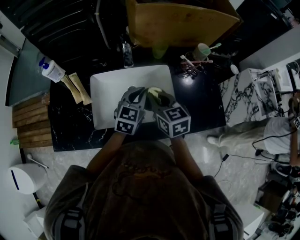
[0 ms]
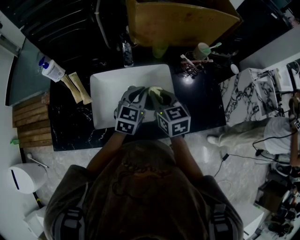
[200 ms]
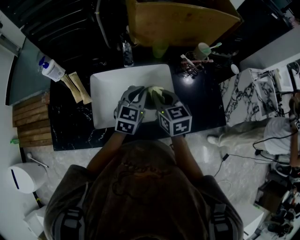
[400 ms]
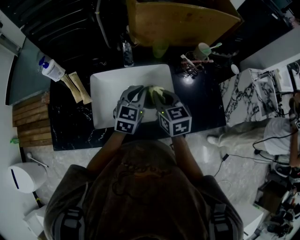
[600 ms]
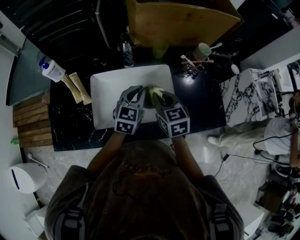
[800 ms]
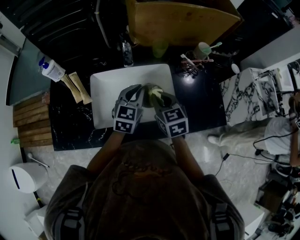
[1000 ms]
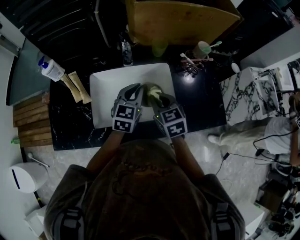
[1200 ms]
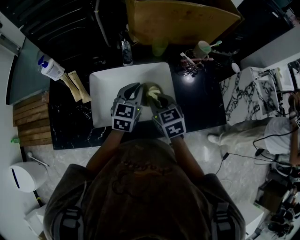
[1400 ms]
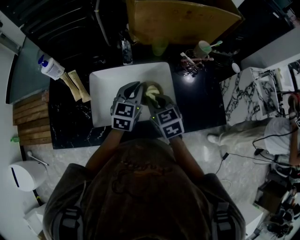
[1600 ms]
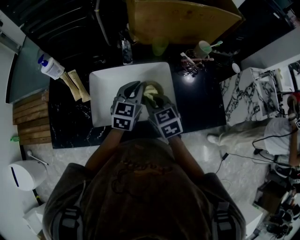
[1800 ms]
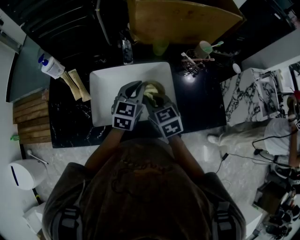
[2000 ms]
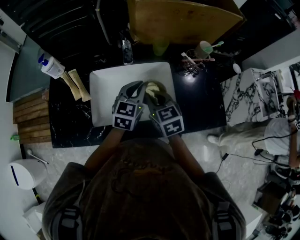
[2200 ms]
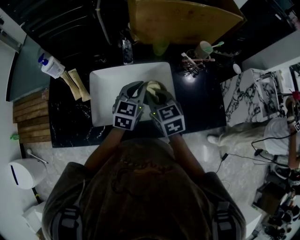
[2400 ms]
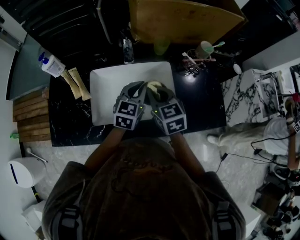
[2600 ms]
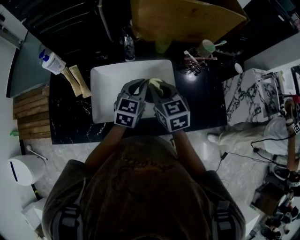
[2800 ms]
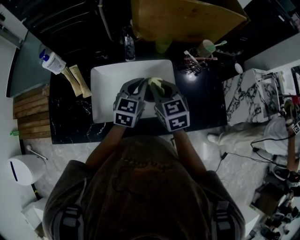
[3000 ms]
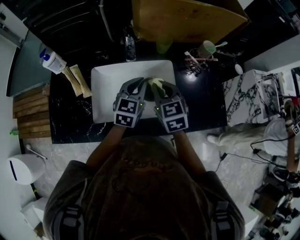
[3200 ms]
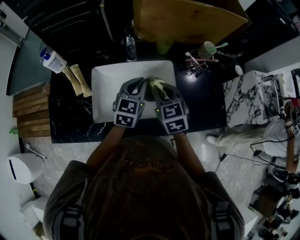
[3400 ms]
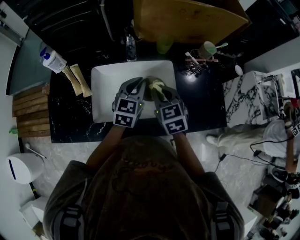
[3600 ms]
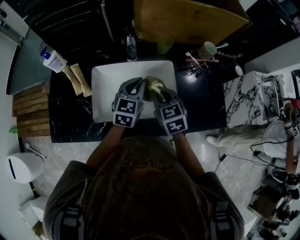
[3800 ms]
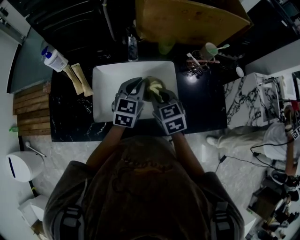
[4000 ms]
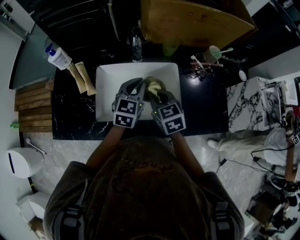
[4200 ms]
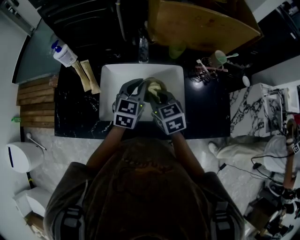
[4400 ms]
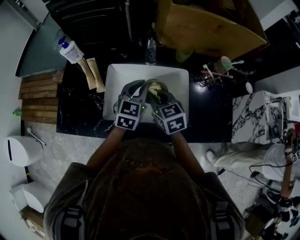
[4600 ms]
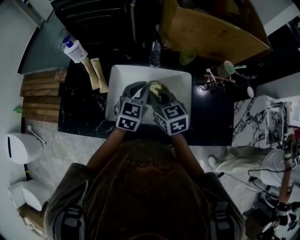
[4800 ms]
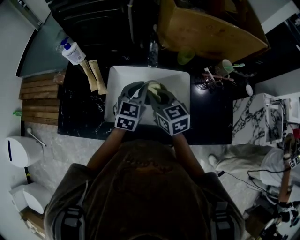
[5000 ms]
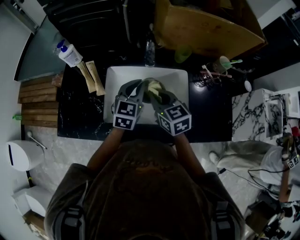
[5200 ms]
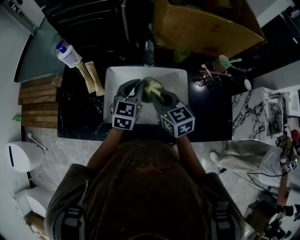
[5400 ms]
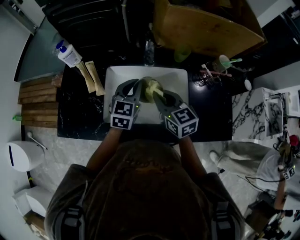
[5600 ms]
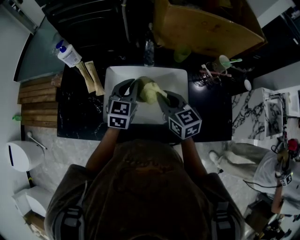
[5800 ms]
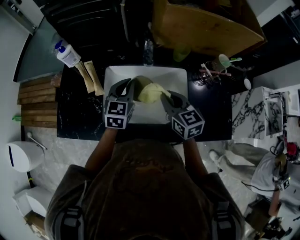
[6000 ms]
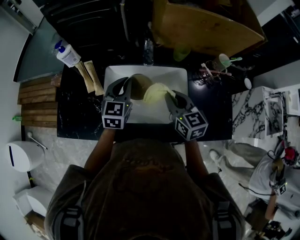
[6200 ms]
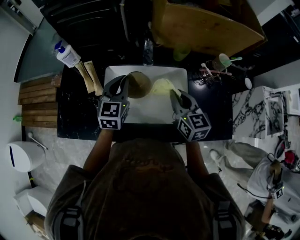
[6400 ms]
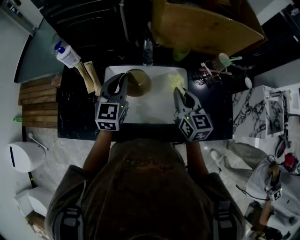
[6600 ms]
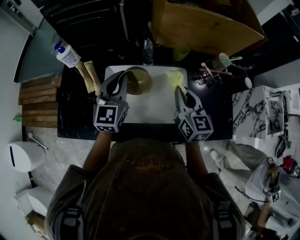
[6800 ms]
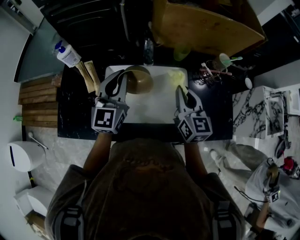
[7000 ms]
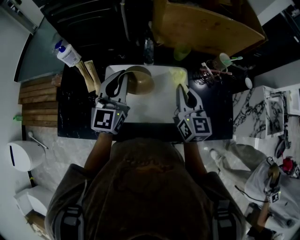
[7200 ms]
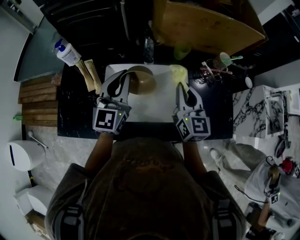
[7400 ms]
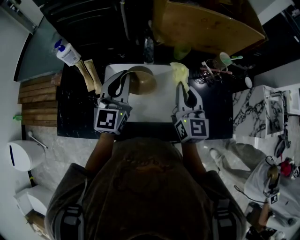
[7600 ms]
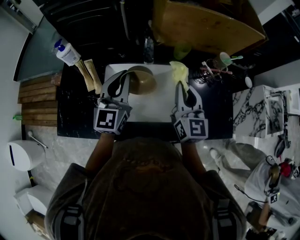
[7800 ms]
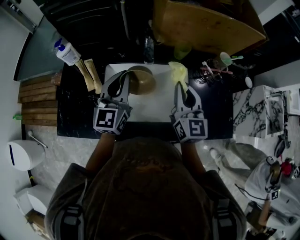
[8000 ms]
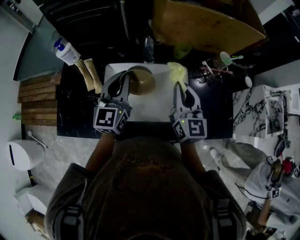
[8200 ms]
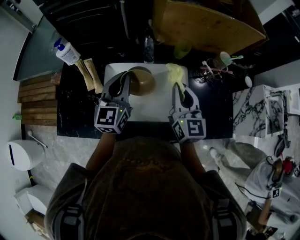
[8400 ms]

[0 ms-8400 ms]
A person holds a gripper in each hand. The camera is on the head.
0 ms to 4200 ms: The grippers move only a little.
4200 ms to 5600 ms: The left gripper shifts some 5 cm to the left.
5600 ms to 7000 ms: The left gripper is displaced upward by some 10 cm, and rotates some 20 degrees; the right gripper travels to the right by about 10 cm, and changes its angle by about 20 degrees.
7000 ms to 8400 ms: The grippers make only small movements.

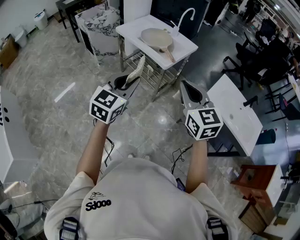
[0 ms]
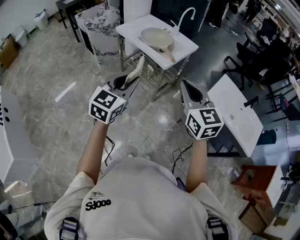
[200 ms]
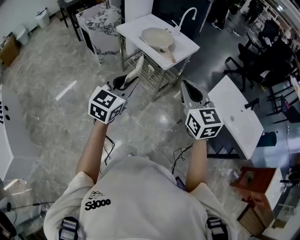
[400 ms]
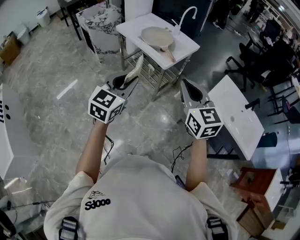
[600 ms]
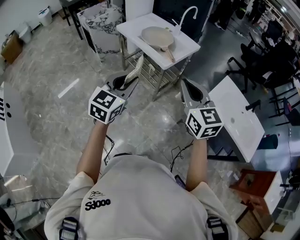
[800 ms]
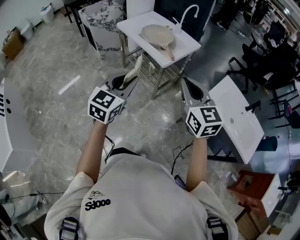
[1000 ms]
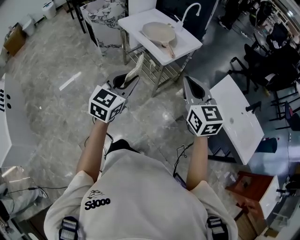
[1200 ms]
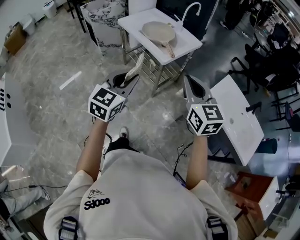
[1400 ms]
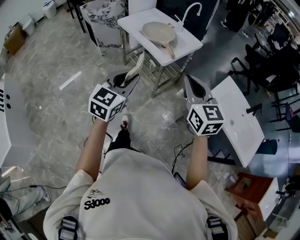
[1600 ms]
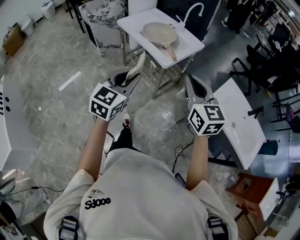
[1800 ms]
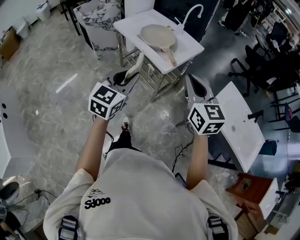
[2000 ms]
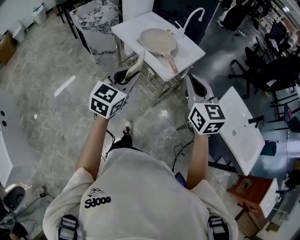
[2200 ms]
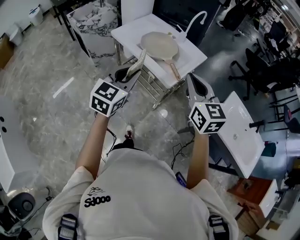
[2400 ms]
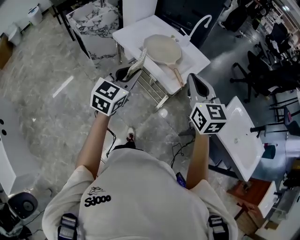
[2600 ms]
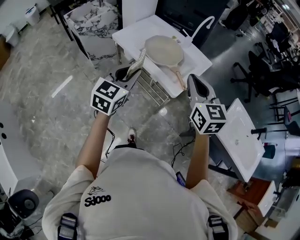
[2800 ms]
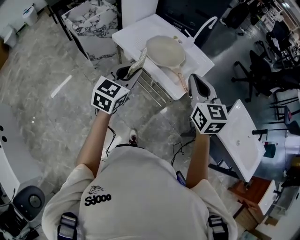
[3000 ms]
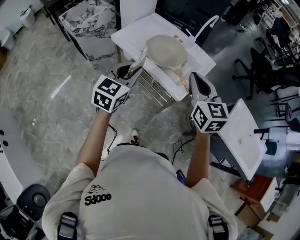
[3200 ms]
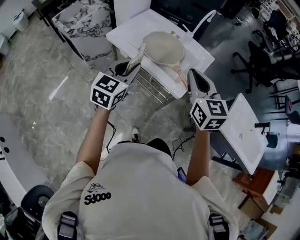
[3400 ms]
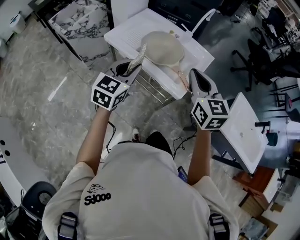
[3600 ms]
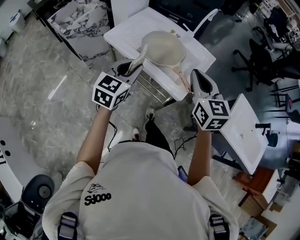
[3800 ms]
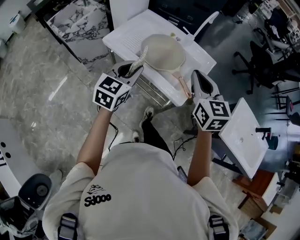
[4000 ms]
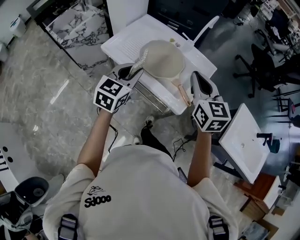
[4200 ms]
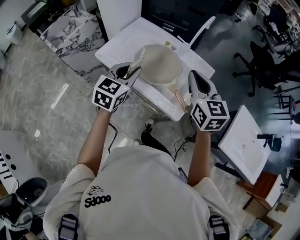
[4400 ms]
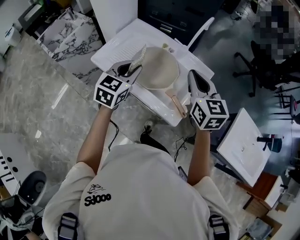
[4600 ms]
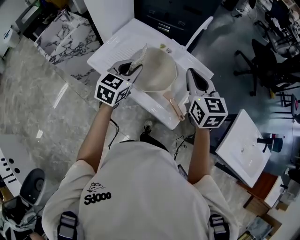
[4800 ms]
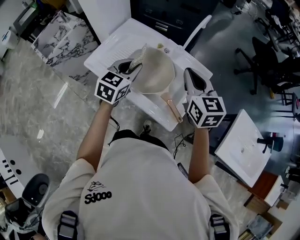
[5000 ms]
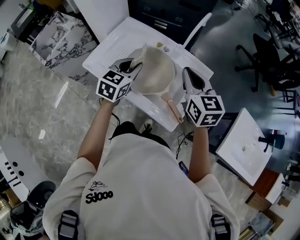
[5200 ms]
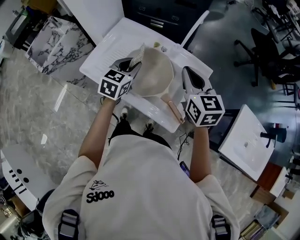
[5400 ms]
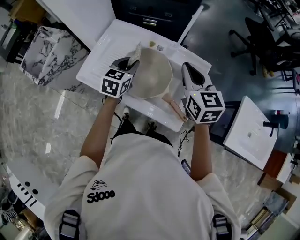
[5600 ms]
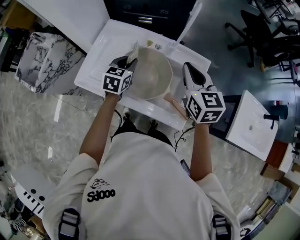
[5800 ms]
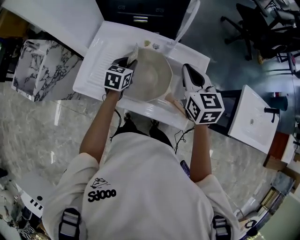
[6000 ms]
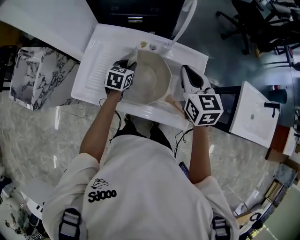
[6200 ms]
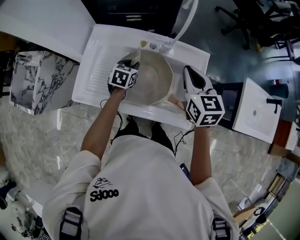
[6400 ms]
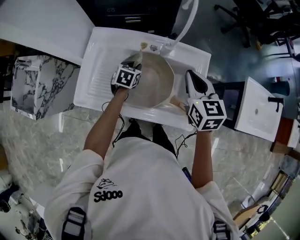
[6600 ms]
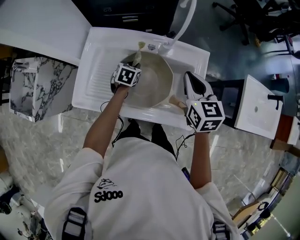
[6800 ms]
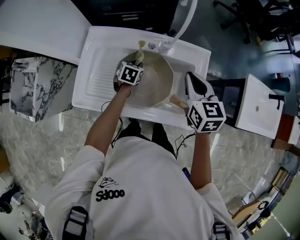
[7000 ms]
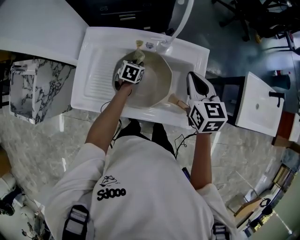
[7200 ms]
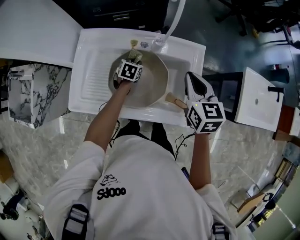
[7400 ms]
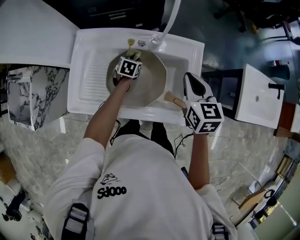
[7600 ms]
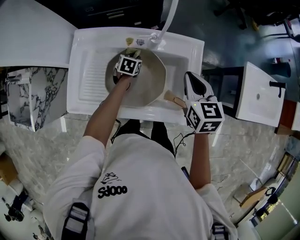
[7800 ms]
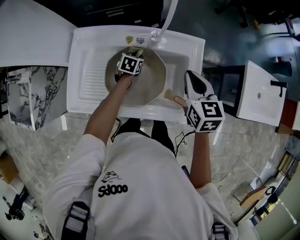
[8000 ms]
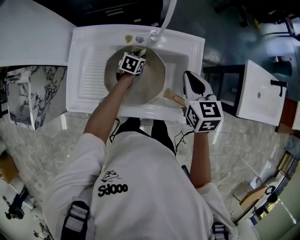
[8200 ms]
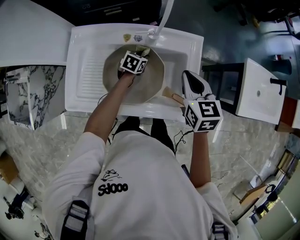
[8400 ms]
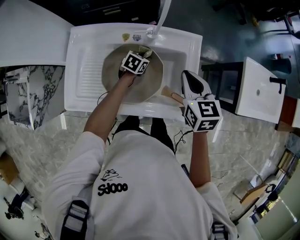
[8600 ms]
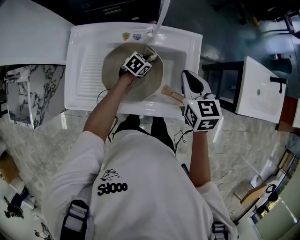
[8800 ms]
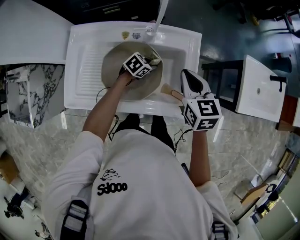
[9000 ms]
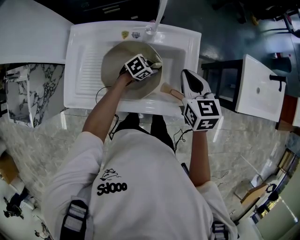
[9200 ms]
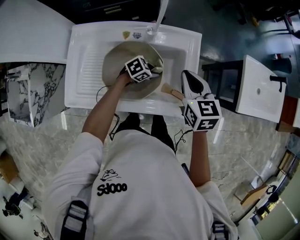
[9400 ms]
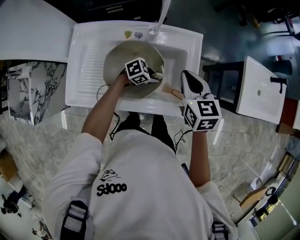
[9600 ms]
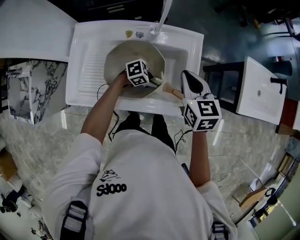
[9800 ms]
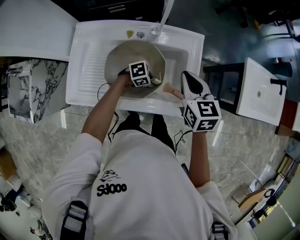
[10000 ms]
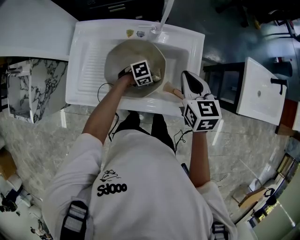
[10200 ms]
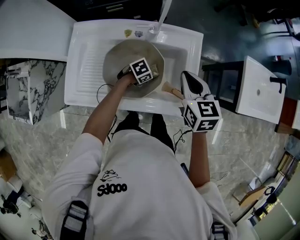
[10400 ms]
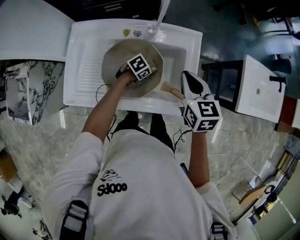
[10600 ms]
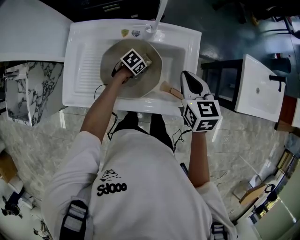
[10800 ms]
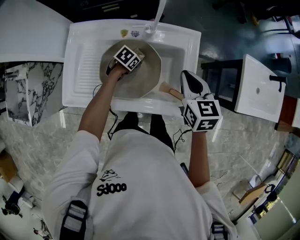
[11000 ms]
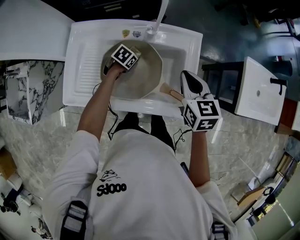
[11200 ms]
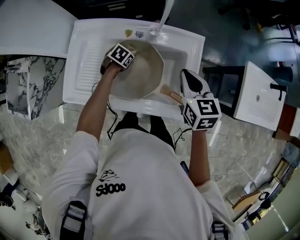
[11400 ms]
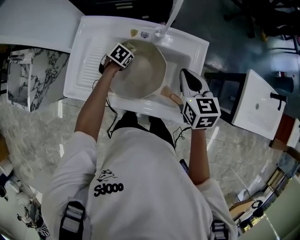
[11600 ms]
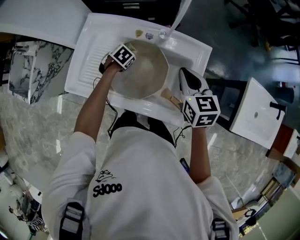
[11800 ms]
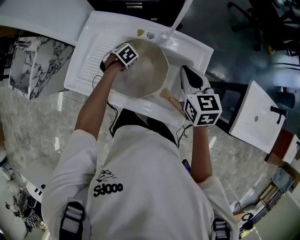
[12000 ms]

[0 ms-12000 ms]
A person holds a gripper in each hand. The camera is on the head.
0 ms to 1600 ms: The left gripper moves to the right, roughly 5 cm. The right gripper is displaced to the right and forward by some 10 cm.
1600 ms to 3000 ms: The grippers both shift forward and to the left by approximately 30 cm.
3000 ms to 4400 ms: Both grippers move forward, roughly 15 cm.
4400 ms to 6000 ms: The left gripper goes about 25 cm forward and downward, and swivels roughly 20 degrees. The right gripper is displaced forward and downward by approximately 15 cm.
6000 ms to 7600 ms: The left gripper travels downward and forward by some 15 cm, and changes its angle by approximately 20 degrees; the right gripper goes roughly 5 cm downward.
7600 ms to 9000 ms: The left gripper moves to the right, some 15 cm, and swivels some 40 degrees.
9000 ms to 10400 ms: The left gripper ends up some 10 cm from where it was, and turns by some 20 degrees.
10400 ms to 12000 ms: The right gripper ends up about 5 cm from where it was; the left gripper changes place by roughly 20 cm, and changes its angle by approximately 40 degrees.

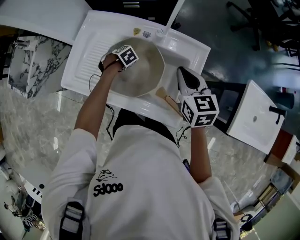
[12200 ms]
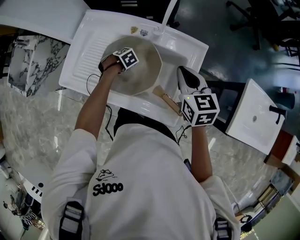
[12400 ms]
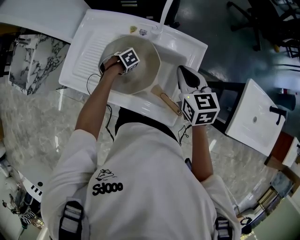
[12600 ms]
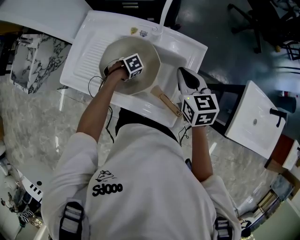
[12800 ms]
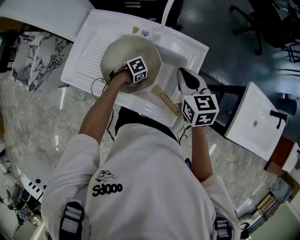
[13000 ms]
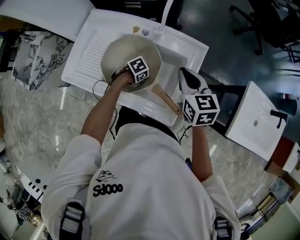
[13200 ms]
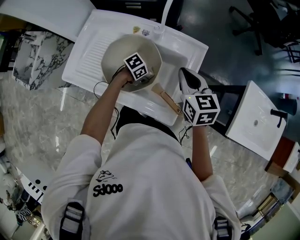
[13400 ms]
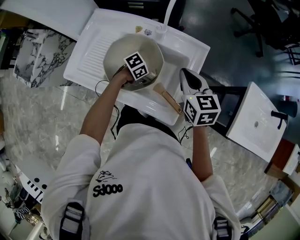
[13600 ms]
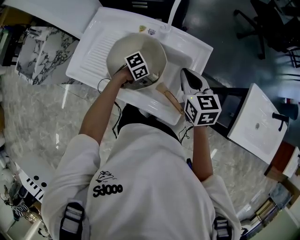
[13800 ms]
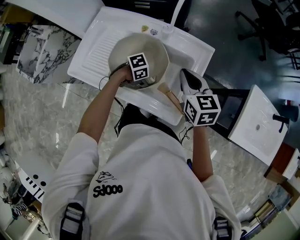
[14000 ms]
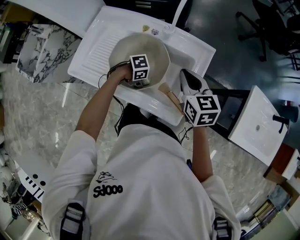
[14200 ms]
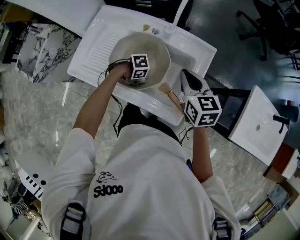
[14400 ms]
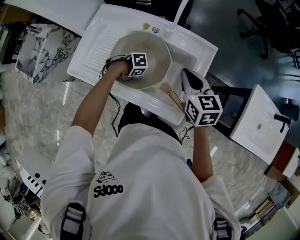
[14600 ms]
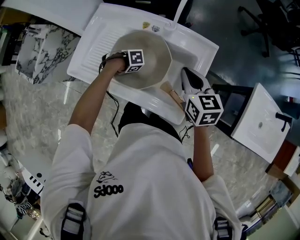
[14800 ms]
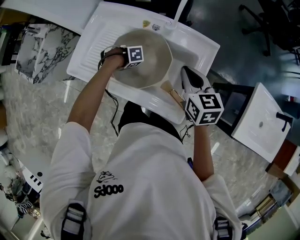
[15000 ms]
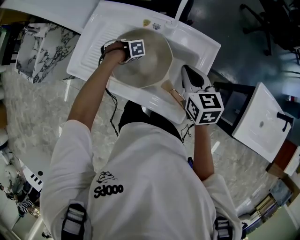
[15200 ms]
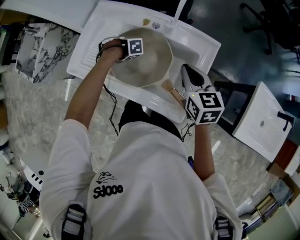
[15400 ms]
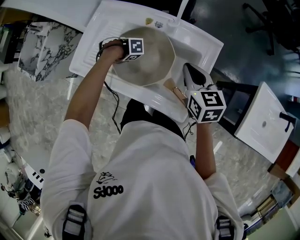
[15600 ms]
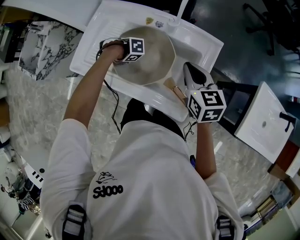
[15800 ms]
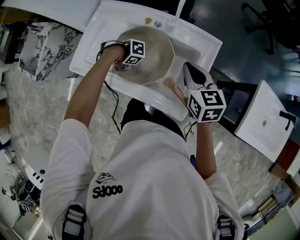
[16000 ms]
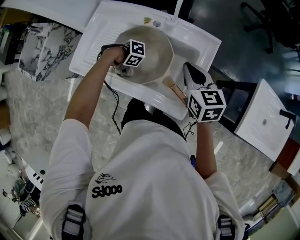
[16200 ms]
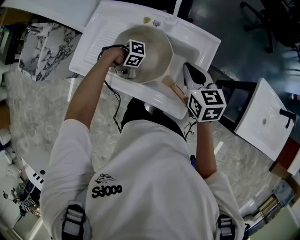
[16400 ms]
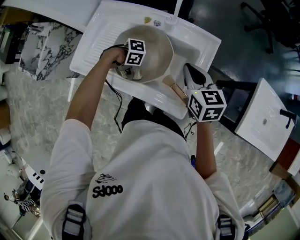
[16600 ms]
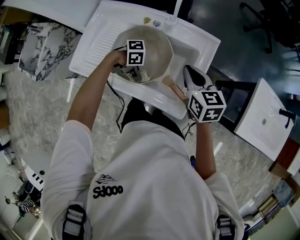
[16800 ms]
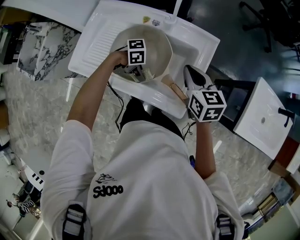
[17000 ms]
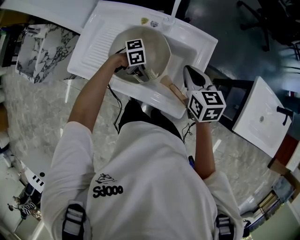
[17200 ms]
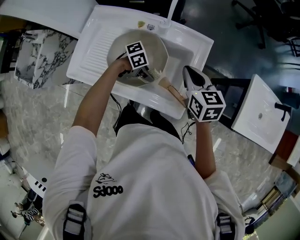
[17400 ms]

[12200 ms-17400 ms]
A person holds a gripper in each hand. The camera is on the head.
12200 ms to 14000 ms: The left gripper ends up about 20 cm from where it was, and tilts its fingers roughly 40 degrees upward.
14000 ms to 15600 ms: The left gripper ends up some 20 cm from where it was, and rotates about 40 degrees.
15600 ms to 17400 ms: The left gripper moves some 20 cm, and points its fingers some 30 degrees further upward.
